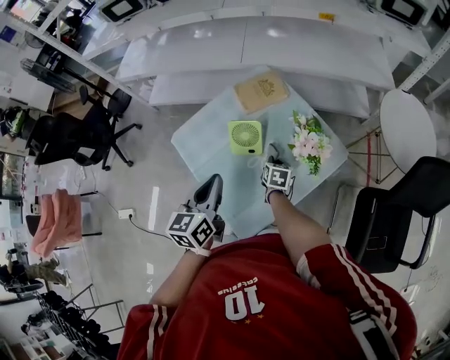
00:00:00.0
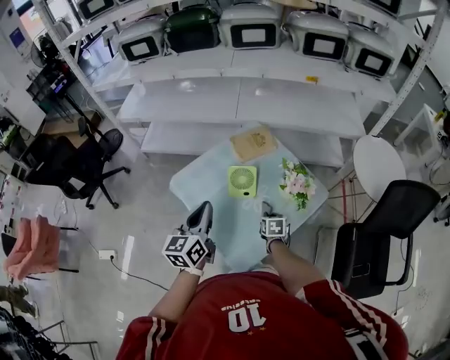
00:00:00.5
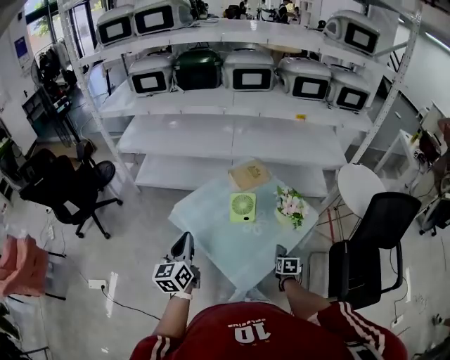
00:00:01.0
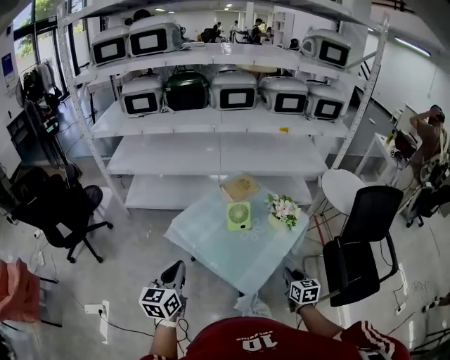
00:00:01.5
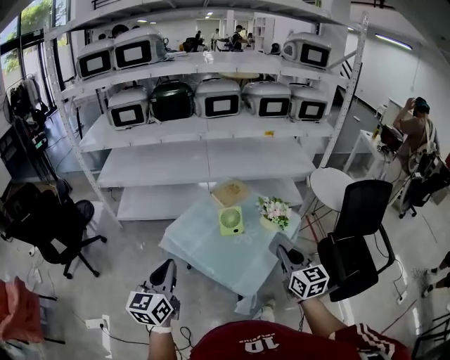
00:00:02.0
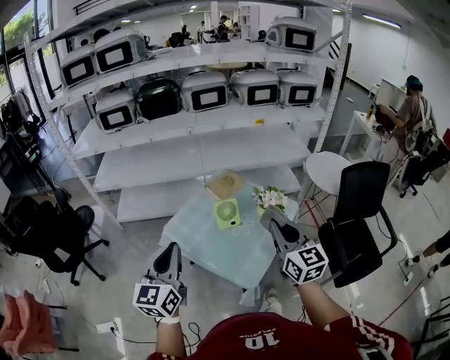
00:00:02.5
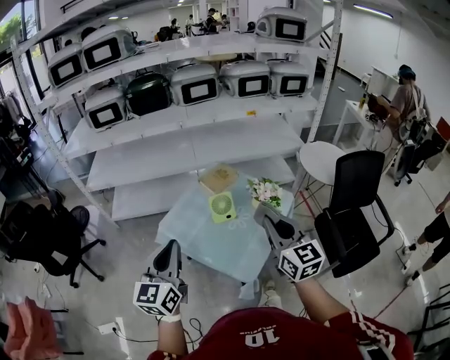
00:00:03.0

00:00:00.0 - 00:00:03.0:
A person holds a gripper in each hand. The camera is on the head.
00:00:00.0 - 00:00:01.5: The right gripper is displaced backward and upward by some 35 cm. Meanwhile the left gripper is displaced to the left and backward by about 30 cm.
00:00:01.5 - 00:00:03.0: The left gripper goes about 10 cm upward. The right gripper moves upward, some 30 cm, and changes its angle by approximately 30 degrees.

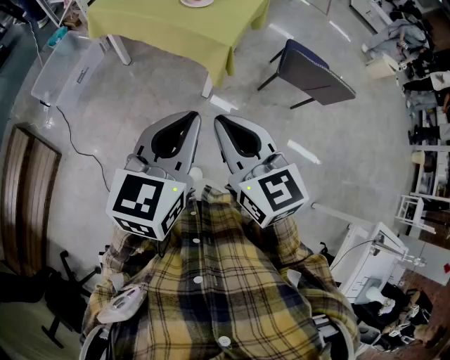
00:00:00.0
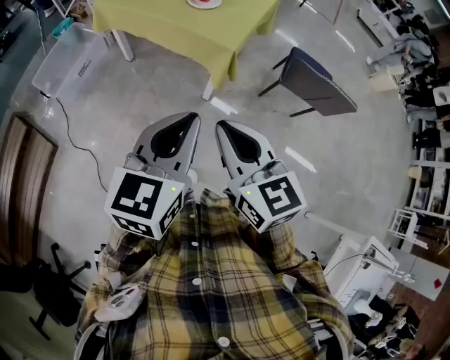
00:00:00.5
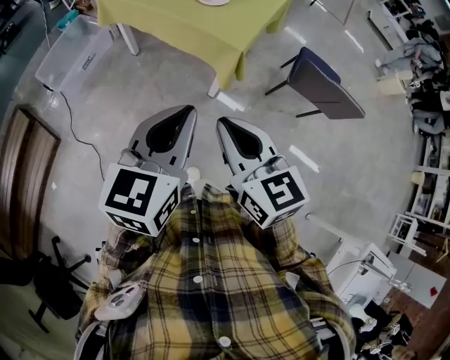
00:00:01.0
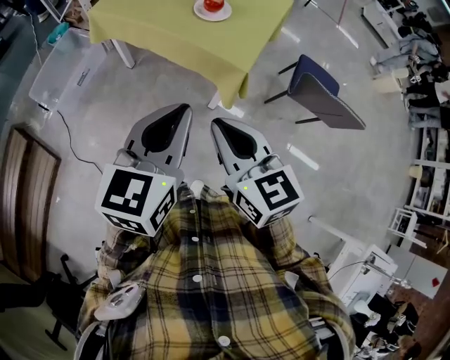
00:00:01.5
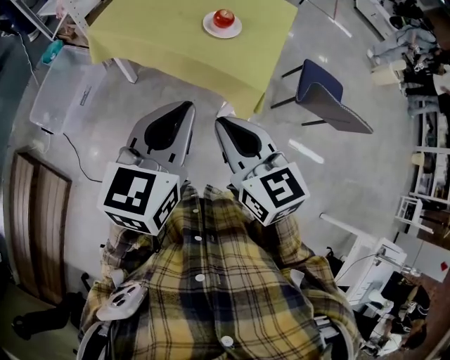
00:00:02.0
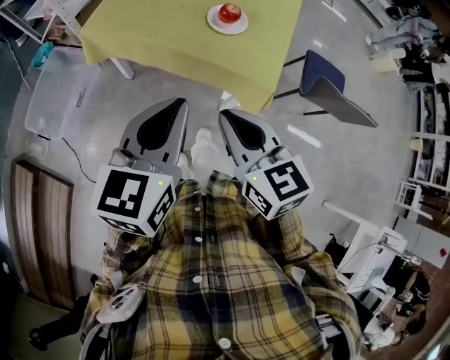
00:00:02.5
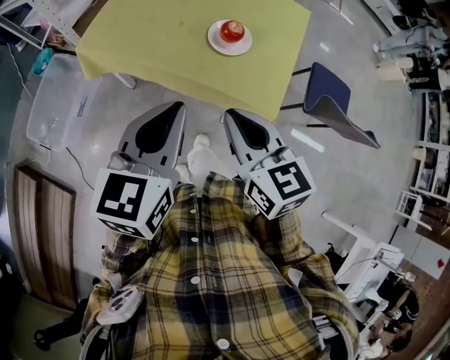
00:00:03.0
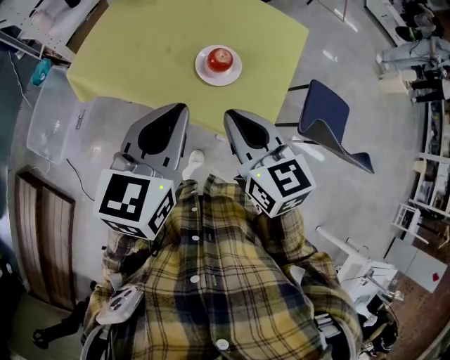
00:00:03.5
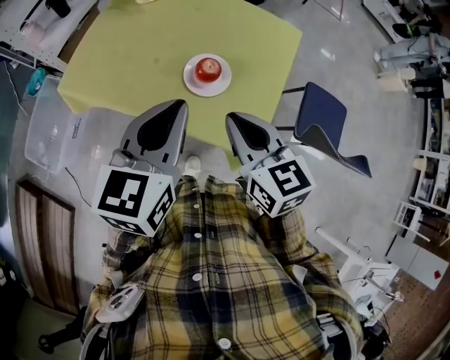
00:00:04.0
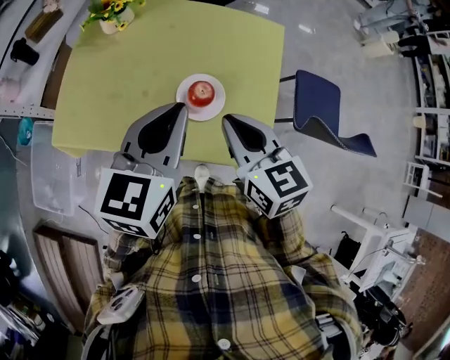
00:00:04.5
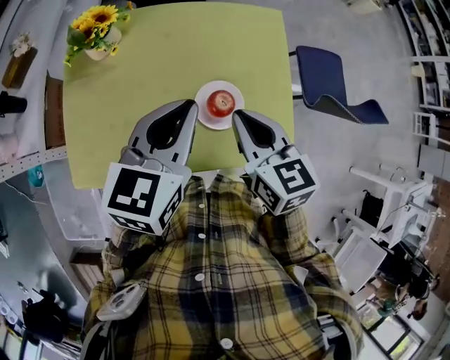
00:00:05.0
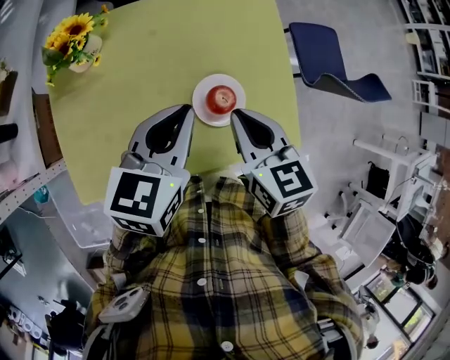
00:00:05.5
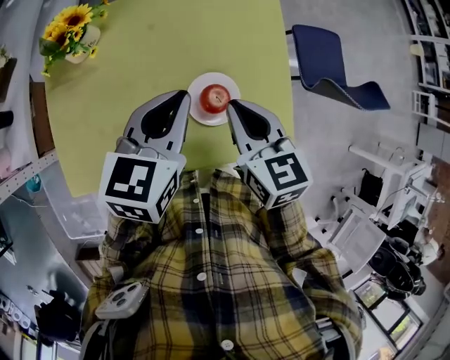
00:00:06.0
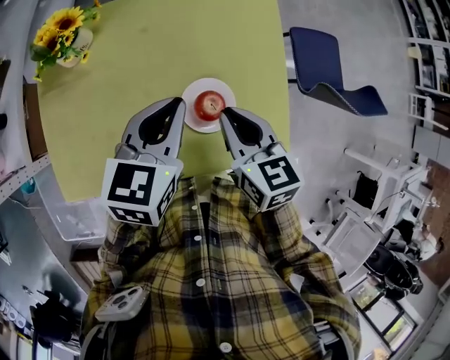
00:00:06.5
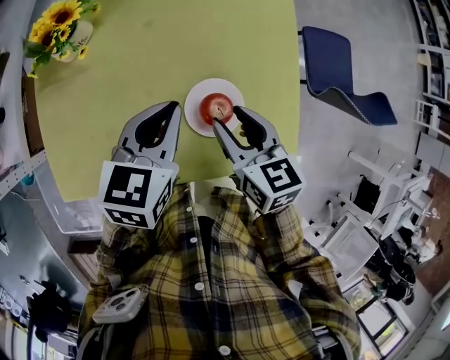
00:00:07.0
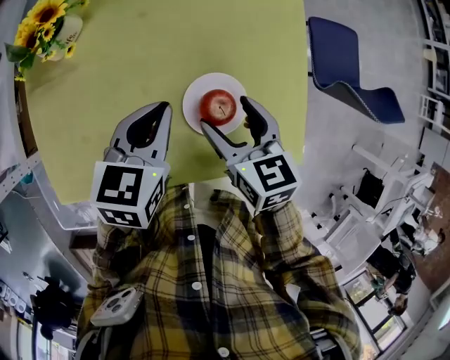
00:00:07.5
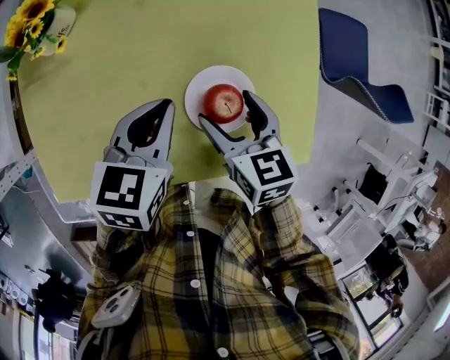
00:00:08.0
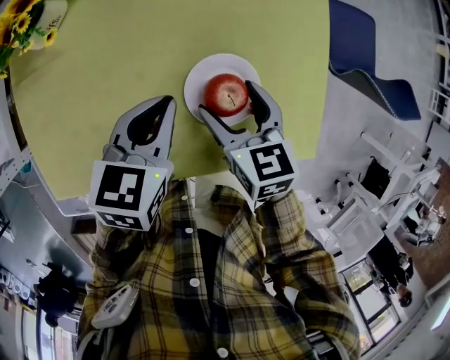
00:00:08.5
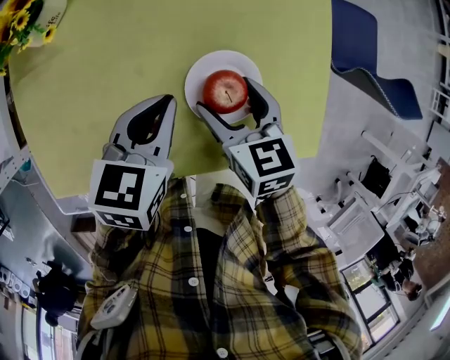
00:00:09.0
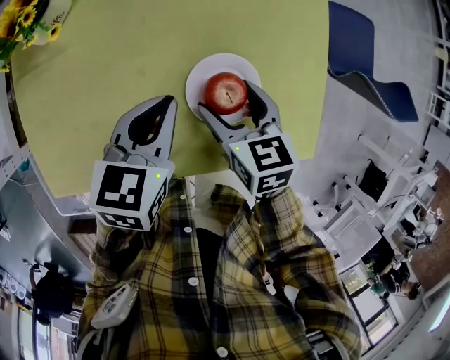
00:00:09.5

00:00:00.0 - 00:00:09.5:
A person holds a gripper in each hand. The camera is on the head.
00:00:00.0 - 00:00:02.0: Both grippers move forward and to the left, about 25 cm.
00:00:02.0 - 00:00:04.0: The grippers both shift forward by some 30 cm.
00:00:04.0 - 00:00:05.5: The right gripper moves roughly 15 cm, and rotates approximately 40 degrees. The left gripper changes place by approximately 20 cm, and changes its angle by some 40 degrees.
00:00:05.5 - 00:00:07.5: Both grippers move downward, about 10 cm. The right gripper opens.
00:00:07.5 - 00:00:09.5: The right gripper is displaced downward by roughly 5 cm.

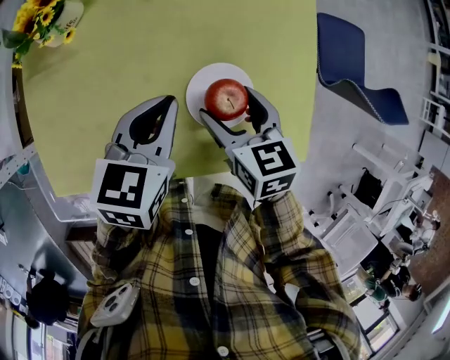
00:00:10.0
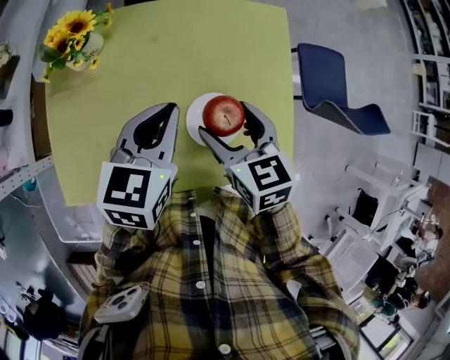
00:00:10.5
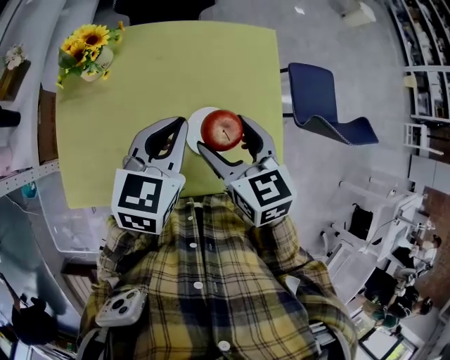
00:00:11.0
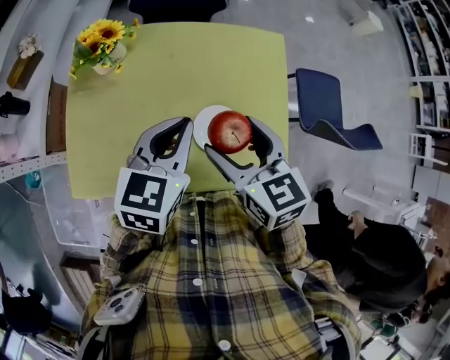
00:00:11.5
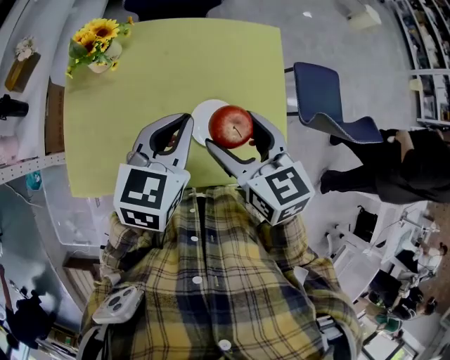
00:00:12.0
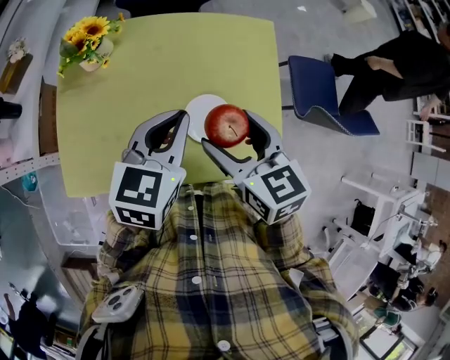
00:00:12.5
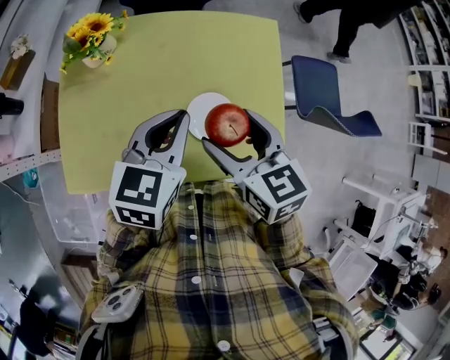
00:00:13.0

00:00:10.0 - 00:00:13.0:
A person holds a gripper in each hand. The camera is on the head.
00:00:10.0 - 00:00:11.5: Both grippers move upward, about 20 cm.
00:00:11.5 - 00:00:13.0: The grippers make only small movements.

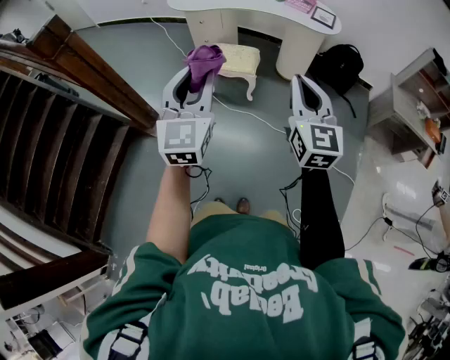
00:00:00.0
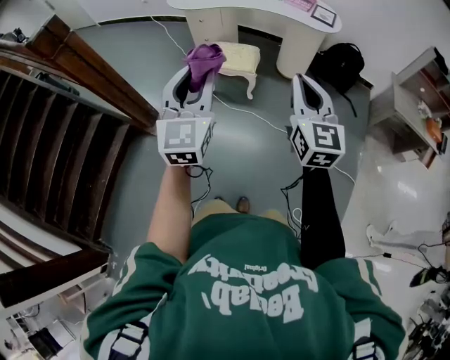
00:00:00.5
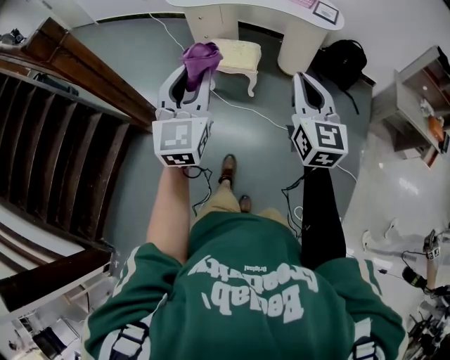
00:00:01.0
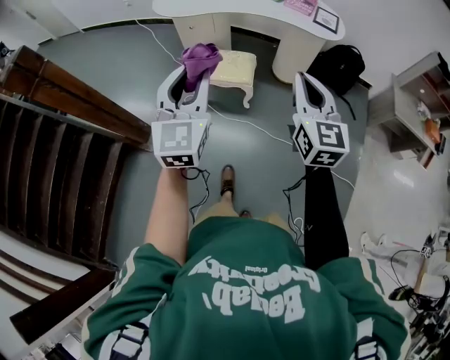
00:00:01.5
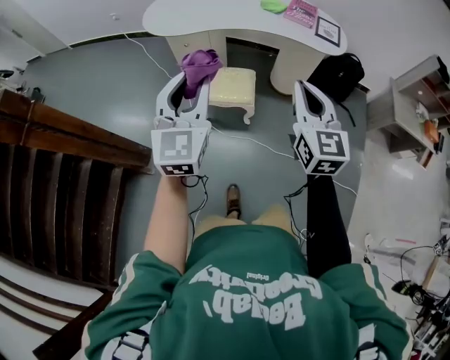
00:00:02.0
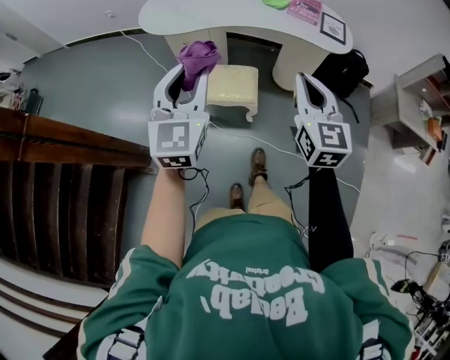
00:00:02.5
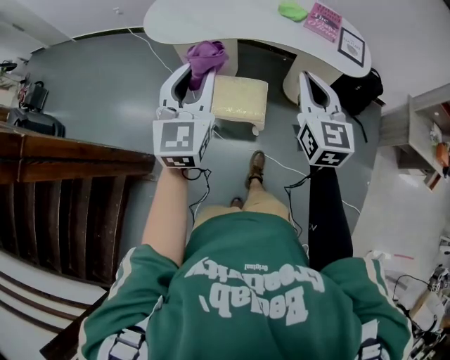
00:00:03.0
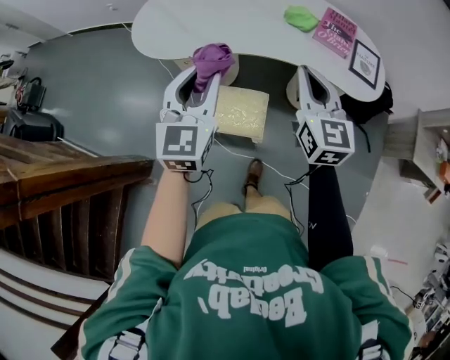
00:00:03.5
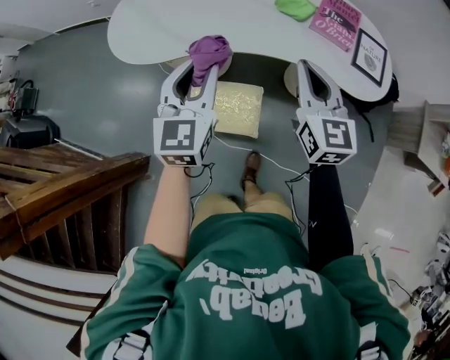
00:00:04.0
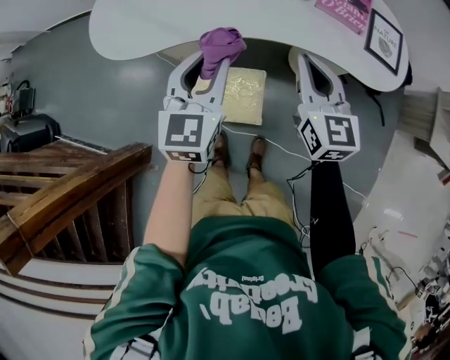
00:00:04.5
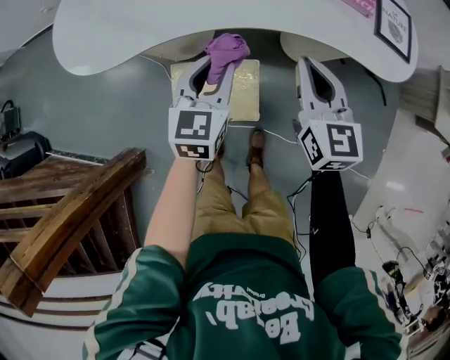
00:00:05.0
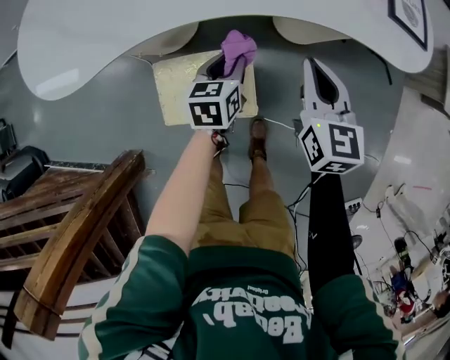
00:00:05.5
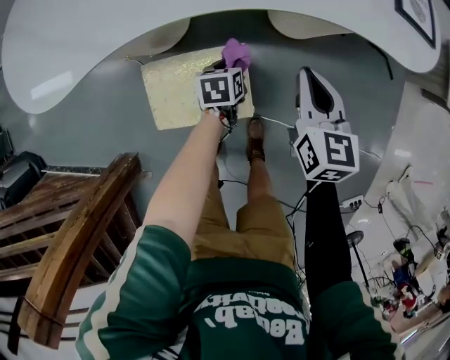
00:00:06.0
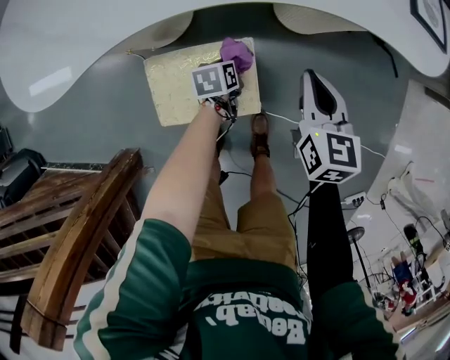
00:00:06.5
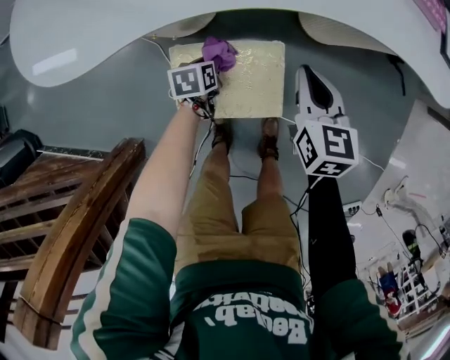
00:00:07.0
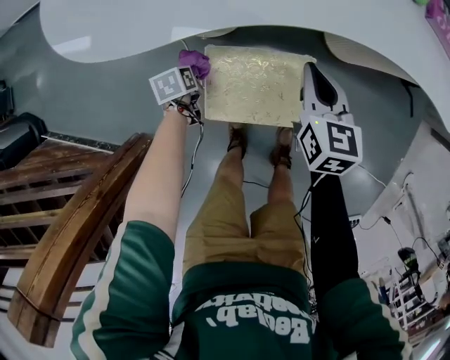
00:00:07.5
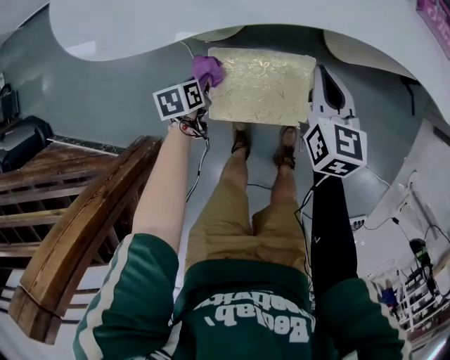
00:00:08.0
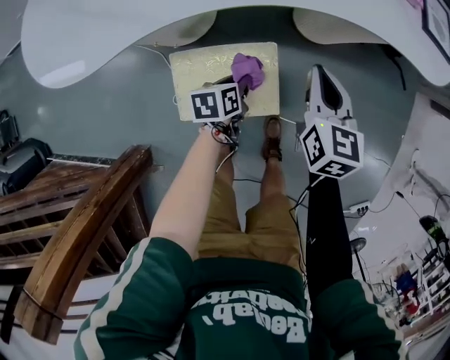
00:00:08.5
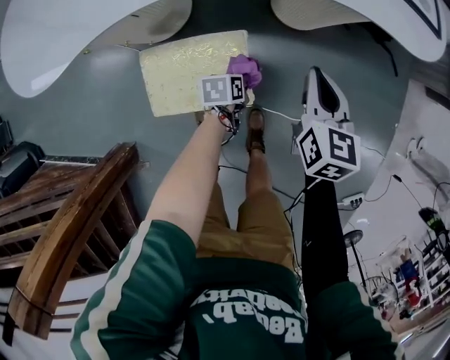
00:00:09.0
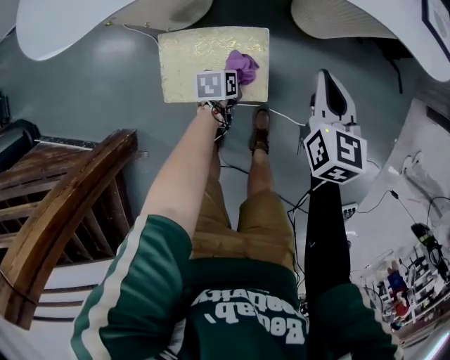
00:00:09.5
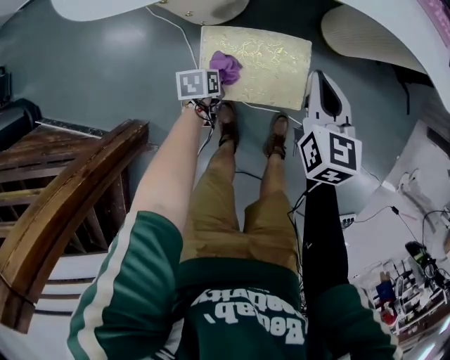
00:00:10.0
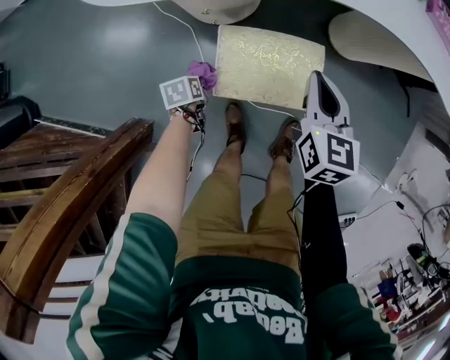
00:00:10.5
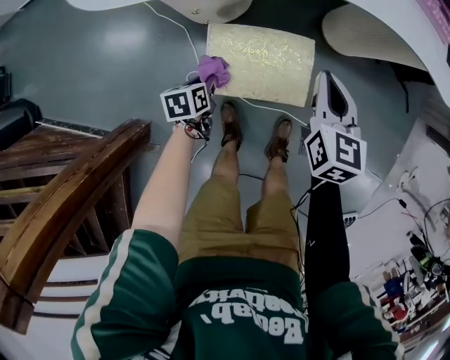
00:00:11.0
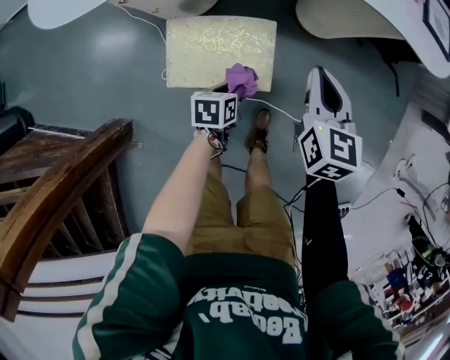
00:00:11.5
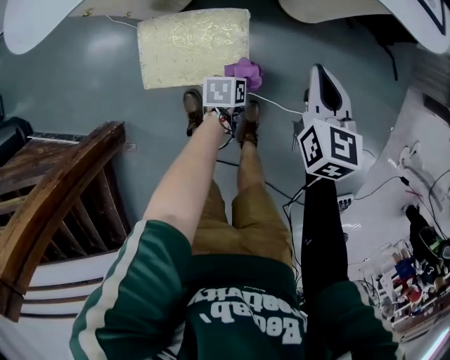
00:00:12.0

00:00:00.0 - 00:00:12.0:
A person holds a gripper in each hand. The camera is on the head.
00:00:00.0 - 00:00:02.0: Both grippers move forward, some 25 cm.
00:00:02.0 - 00:00:04.0: Both grippers travel together forward, approximately 40 cm.
00:00:04.0 - 00:00:06.0: The left gripper is displaced downward by approximately 50 cm, and tips its fingers downward by roughly 50 degrees. The right gripper shifts roughly 25 cm downward, and changes its angle by some 30 degrees.
00:00:06.0 - 00:00:08.0: The right gripper is displaced to the left by approximately 20 cm. Meanwhile the left gripper travels to the left by some 30 cm.
00:00:08.0 - 00:00:10.0: The right gripper goes some 5 cm backward, and goes to the right and returns, approximately 20 cm each way; the left gripper travels downward by about 5 cm, and goes to the right and returns, approximately 35 cm each way.
00:00:10.0 - 00:00:12.0: The grippers both shift to the right by roughly 25 cm.
